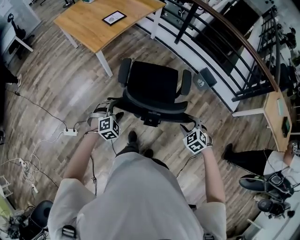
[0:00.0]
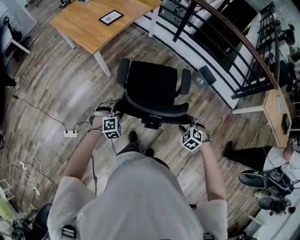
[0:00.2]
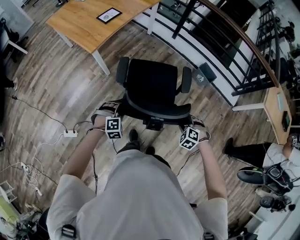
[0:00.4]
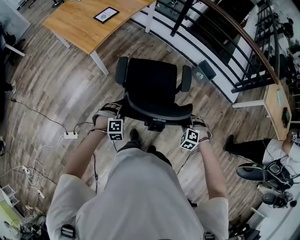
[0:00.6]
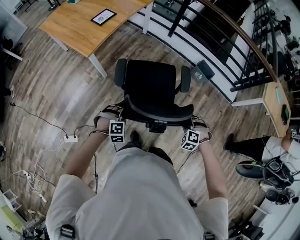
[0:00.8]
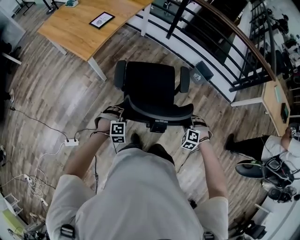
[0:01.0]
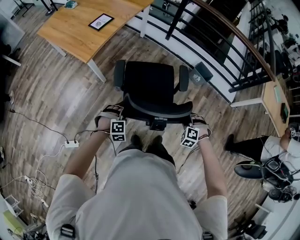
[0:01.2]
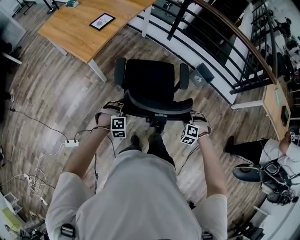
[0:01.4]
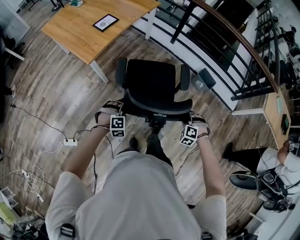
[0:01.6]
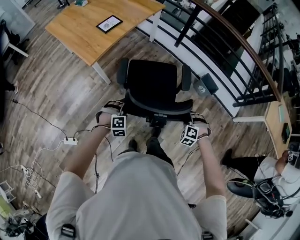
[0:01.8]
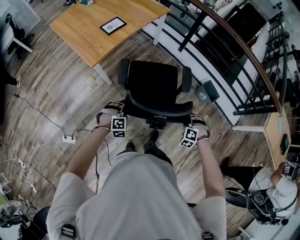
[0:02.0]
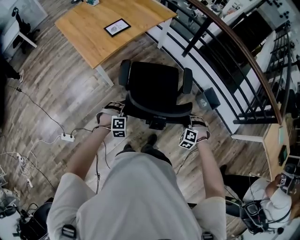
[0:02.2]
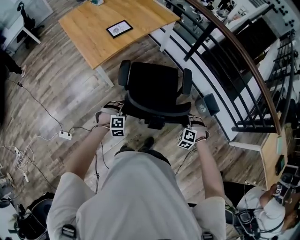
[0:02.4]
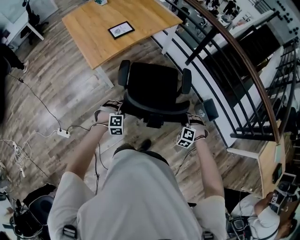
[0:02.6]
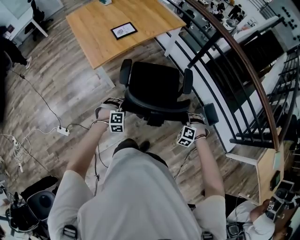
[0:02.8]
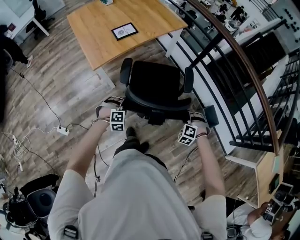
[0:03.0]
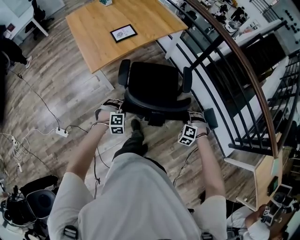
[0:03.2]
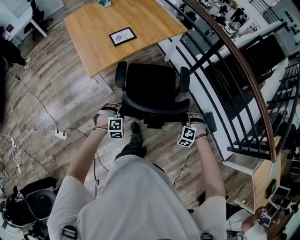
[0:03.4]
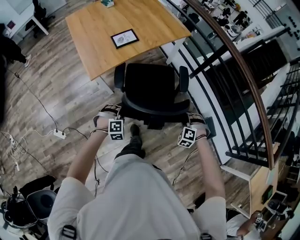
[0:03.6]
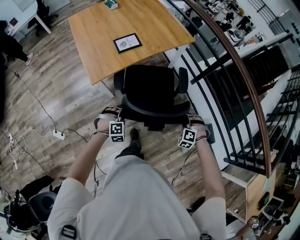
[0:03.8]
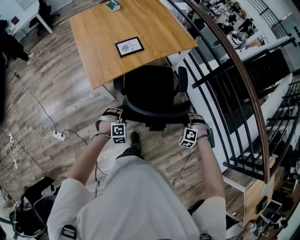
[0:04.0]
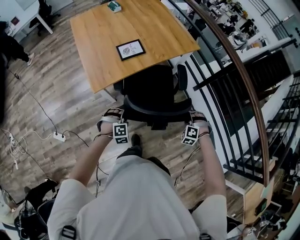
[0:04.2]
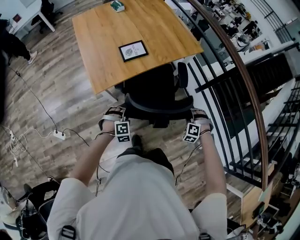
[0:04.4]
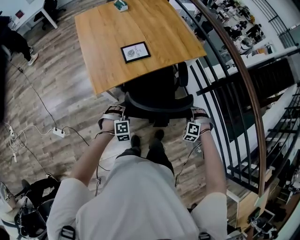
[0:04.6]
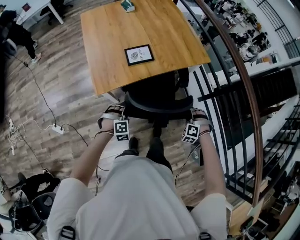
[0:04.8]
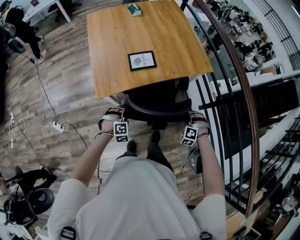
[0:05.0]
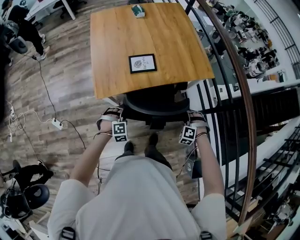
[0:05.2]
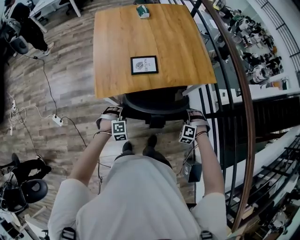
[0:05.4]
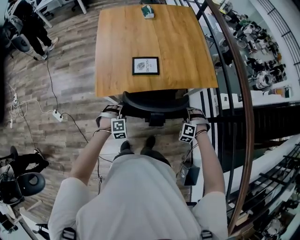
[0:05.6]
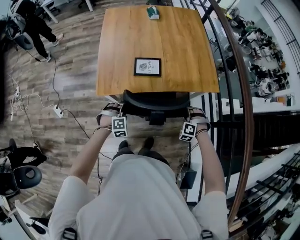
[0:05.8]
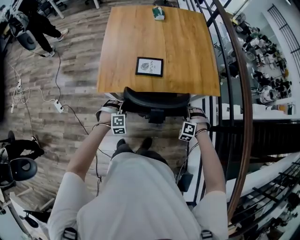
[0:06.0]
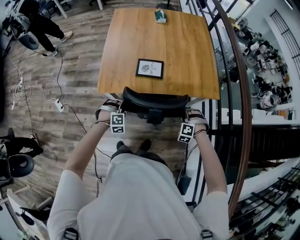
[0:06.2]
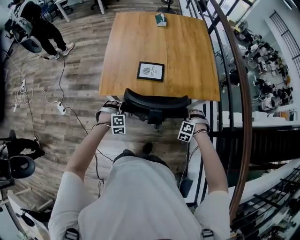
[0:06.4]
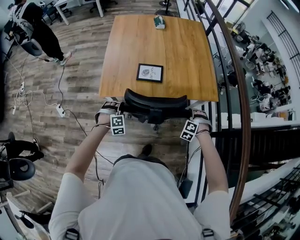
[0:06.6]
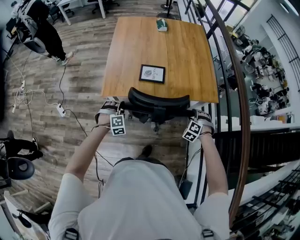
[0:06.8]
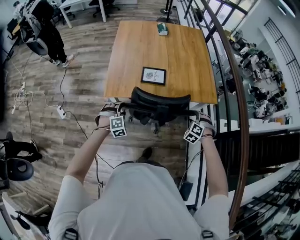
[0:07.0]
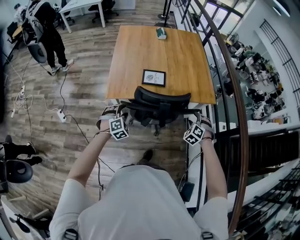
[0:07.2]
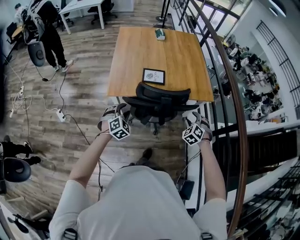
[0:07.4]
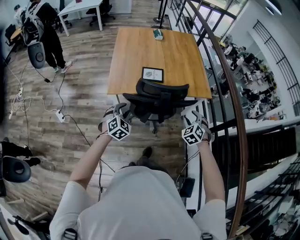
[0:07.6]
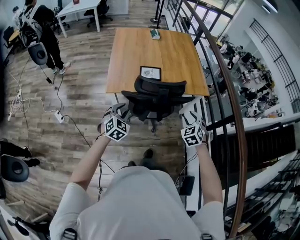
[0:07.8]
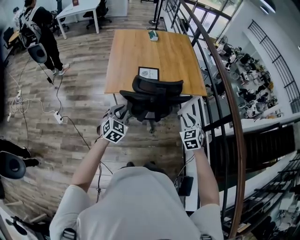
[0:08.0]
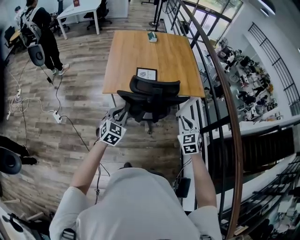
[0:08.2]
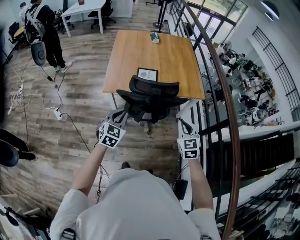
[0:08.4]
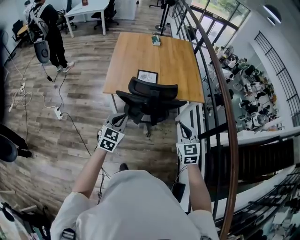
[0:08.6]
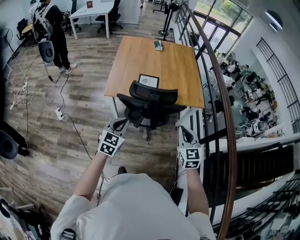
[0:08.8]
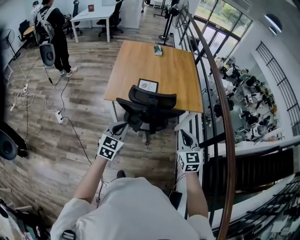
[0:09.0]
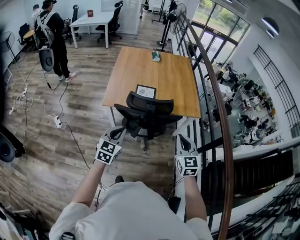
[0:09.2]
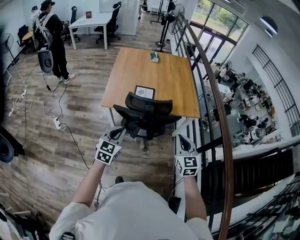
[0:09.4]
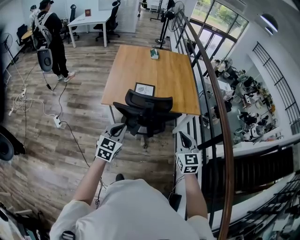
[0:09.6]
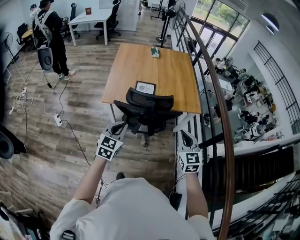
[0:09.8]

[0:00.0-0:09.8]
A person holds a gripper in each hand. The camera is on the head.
0:00.0 to 0:01.4: Both grippers move forward and downward, about 10 cm. The left gripper changes its angle by some 20 degrees, and closes up, while the right gripper changes its angle by approximately 30 degrees.
0:01.4 to 0:02.8: The grippers both shift forward by approximately 25 cm.
0:02.8 to 0:04.2: The grippers both shift forward by roughly 25 cm.
0:04.2 to 0:05.6: The left gripper moves forward, about 15 cm, and swivels roughly 20 degrees; the right gripper moves forward, roughly 25 cm, and rotates approximately 20 degrees.
0:05.6 to 0:07.0: The right gripper changes place by roughly 5 cm, and opens its fingers; the left gripper moves about 5 cm, and opens.
0:07.0 to 0:08.4: The grippers both shift backward and upward by roughly 25 cm. The left gripper twists roughly 50 degrees counterclockwise, seen from behind, and closes. Meanwhile the right gripper rotates around the line of its fingers by roughly 50 degrees, clockwise from behind, and closes.
0:08.4 to 0:09.8: The left gripper shifts by roughly 5 cm. The right gripper shifts roughly 5 cm upward.

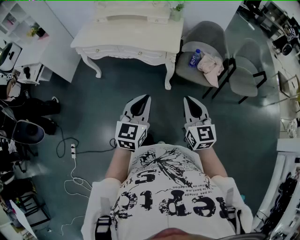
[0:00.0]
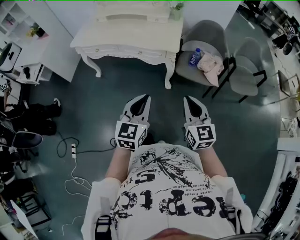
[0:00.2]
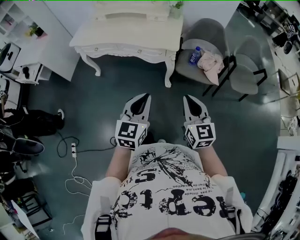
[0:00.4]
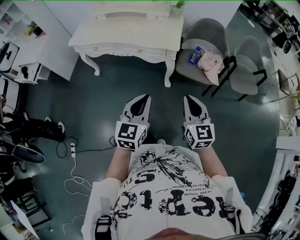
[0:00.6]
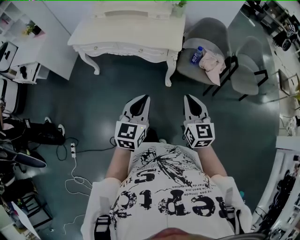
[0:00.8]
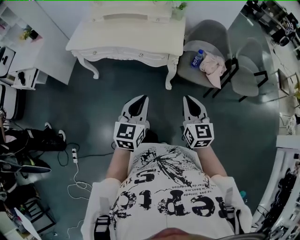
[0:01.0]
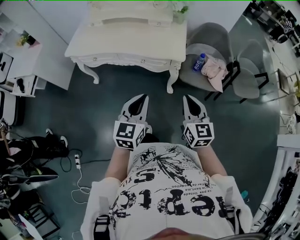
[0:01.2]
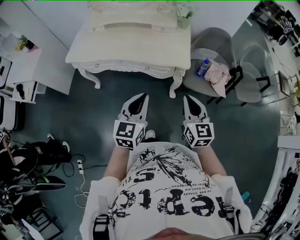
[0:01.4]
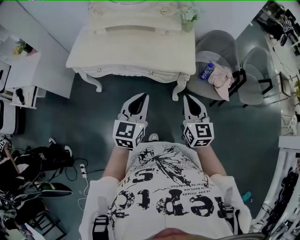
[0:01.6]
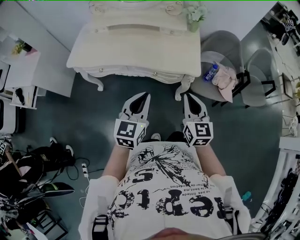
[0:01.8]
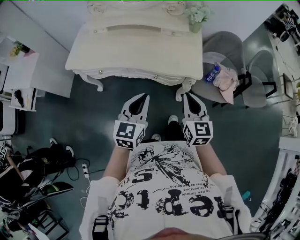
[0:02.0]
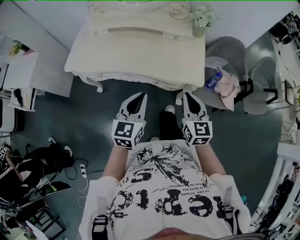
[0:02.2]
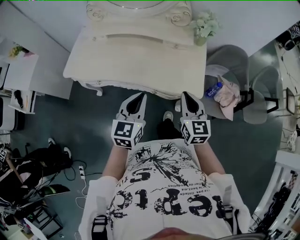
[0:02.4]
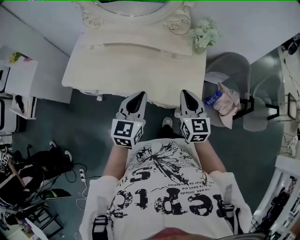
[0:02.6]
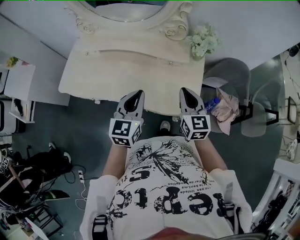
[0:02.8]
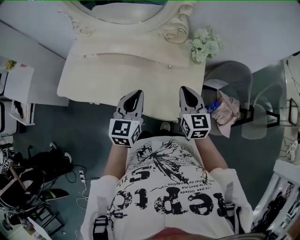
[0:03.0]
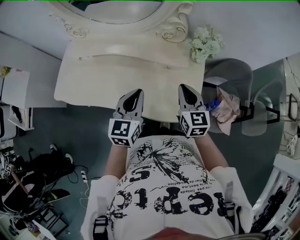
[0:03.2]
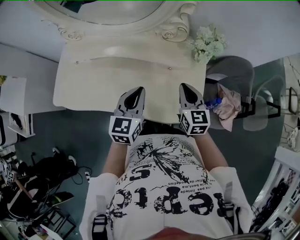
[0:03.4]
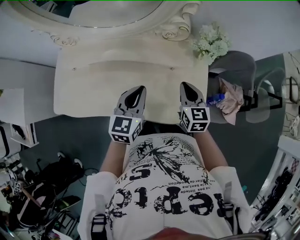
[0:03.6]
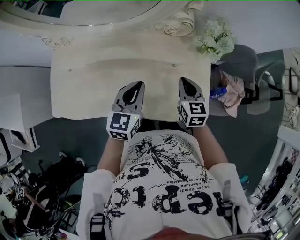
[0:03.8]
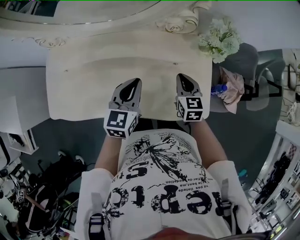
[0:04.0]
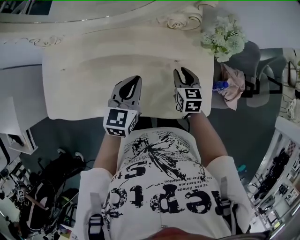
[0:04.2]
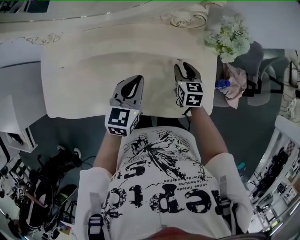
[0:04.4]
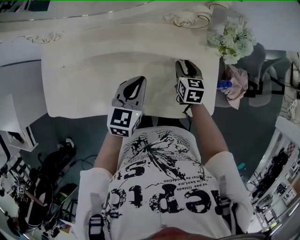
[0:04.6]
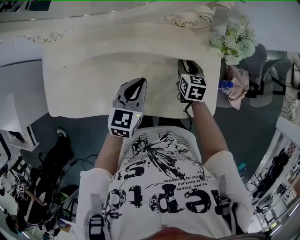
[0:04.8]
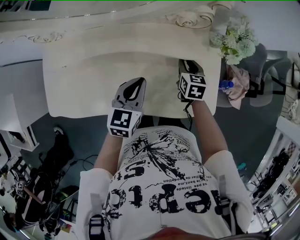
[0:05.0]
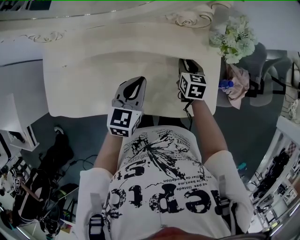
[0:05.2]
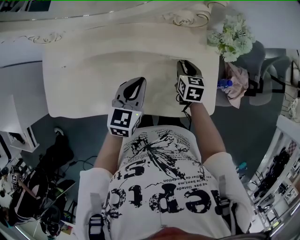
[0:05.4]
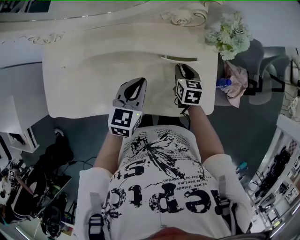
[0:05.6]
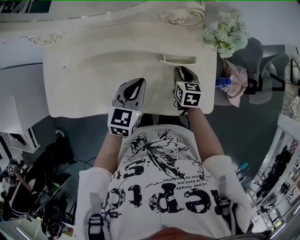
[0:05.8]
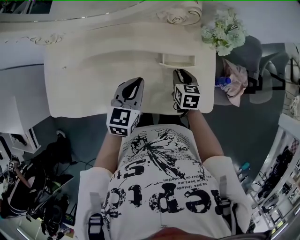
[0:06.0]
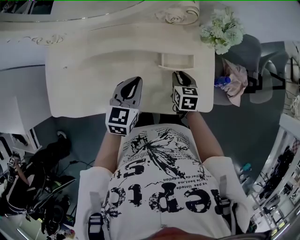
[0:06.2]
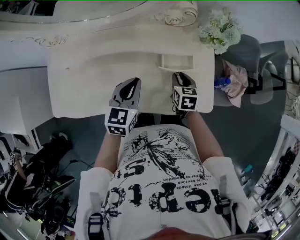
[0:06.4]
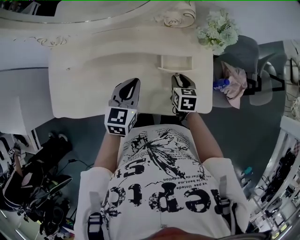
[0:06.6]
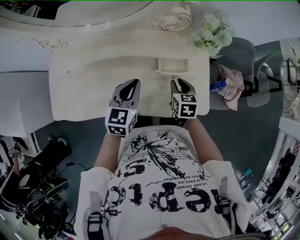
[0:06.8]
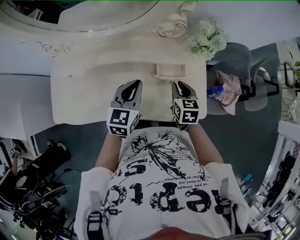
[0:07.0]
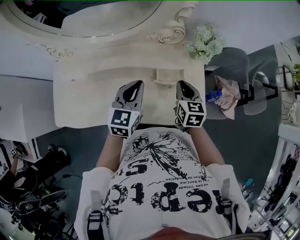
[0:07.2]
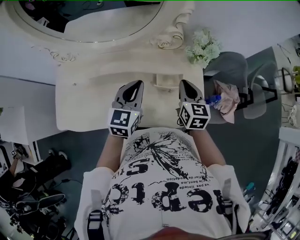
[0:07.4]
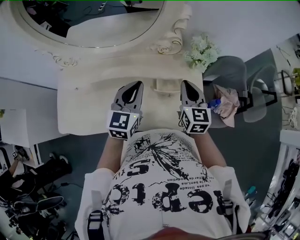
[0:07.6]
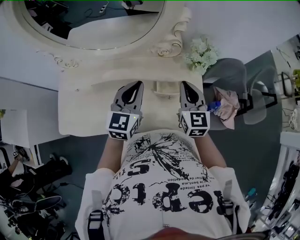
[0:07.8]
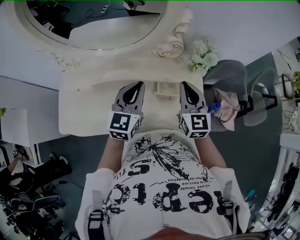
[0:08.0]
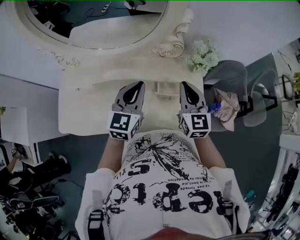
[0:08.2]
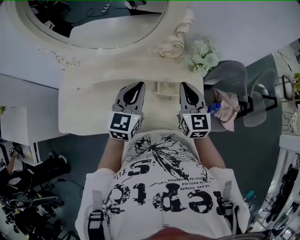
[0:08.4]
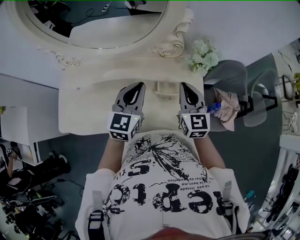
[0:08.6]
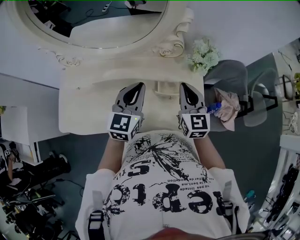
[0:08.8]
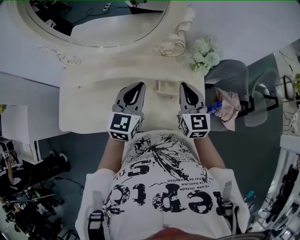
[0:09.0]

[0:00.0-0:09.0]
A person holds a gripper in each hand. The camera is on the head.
0:00.0 to 0:01.6: The two grippers go roughly 25 cm forward and to the left.
0:01.6 to 0:03.0: Both grippers travel together forward, some 35 cm.
0:03.0 to 0:04.4: The left gripper heads forward, downward and to the left, covering about 20 cm, and turns by about 20 degrees. The right gripper is displaced downward and forward by some 25 cm, swivels some 30 degrees, and opens its fingers.
0:04.4 to 0:06.0: The grippers stay close to where they were, moving slightly.
0:06.0 to 0:07.6: The left gripper goes about 10 cm upward, while the right gripper heads upward, covering some 20 cm, changes its angle by about 30 degrees, and closes.
0:07.6 to 0:09.0: The grippers move only a little.

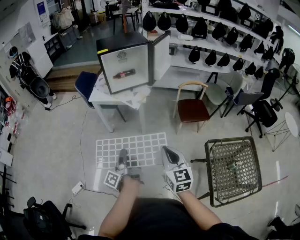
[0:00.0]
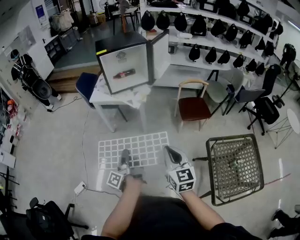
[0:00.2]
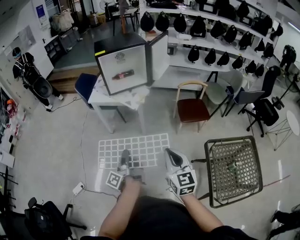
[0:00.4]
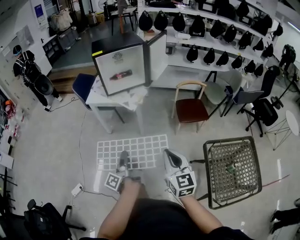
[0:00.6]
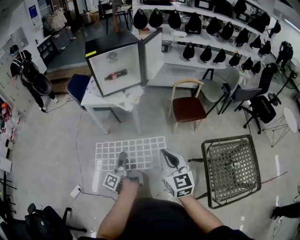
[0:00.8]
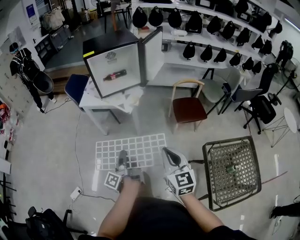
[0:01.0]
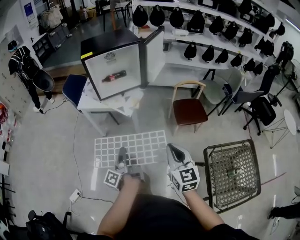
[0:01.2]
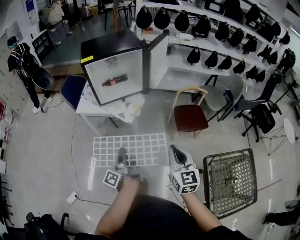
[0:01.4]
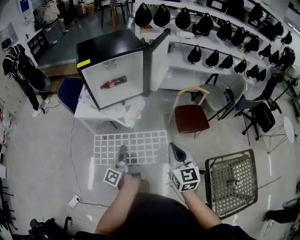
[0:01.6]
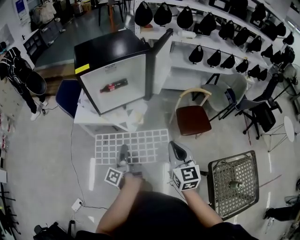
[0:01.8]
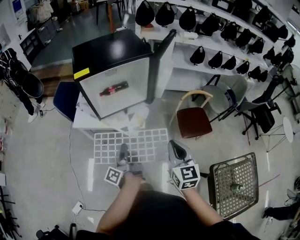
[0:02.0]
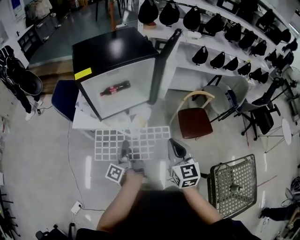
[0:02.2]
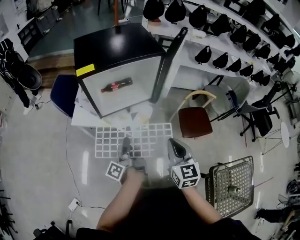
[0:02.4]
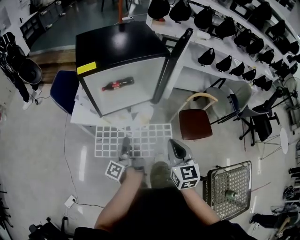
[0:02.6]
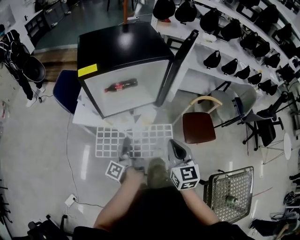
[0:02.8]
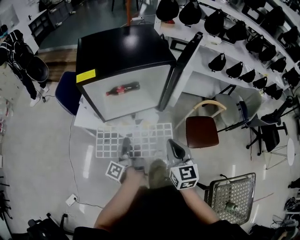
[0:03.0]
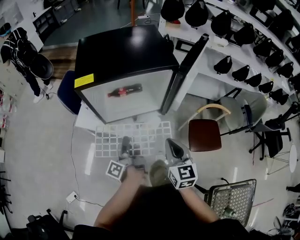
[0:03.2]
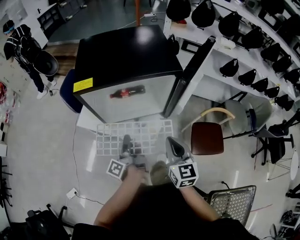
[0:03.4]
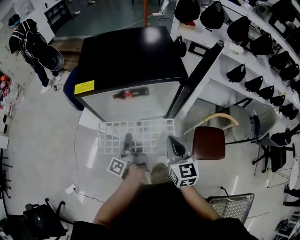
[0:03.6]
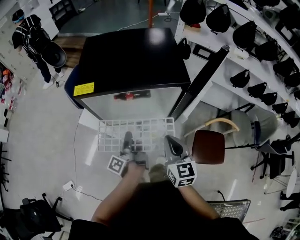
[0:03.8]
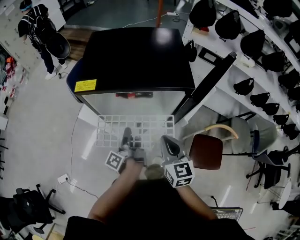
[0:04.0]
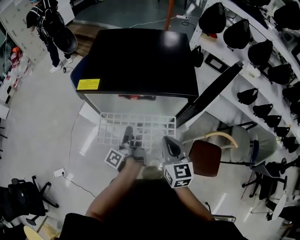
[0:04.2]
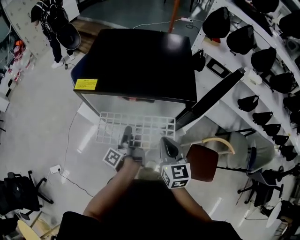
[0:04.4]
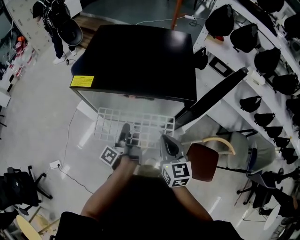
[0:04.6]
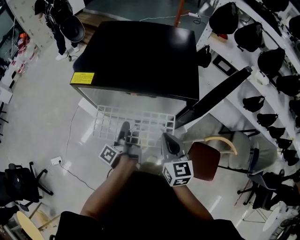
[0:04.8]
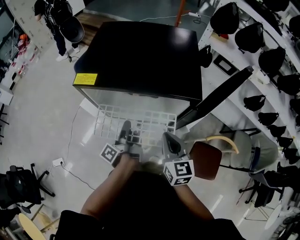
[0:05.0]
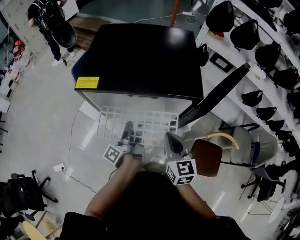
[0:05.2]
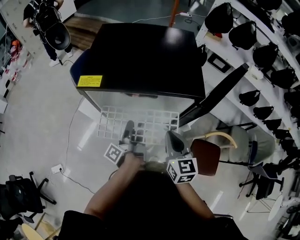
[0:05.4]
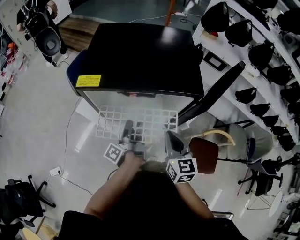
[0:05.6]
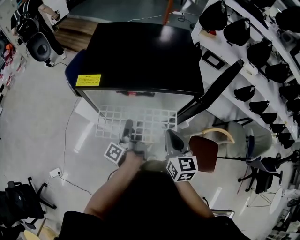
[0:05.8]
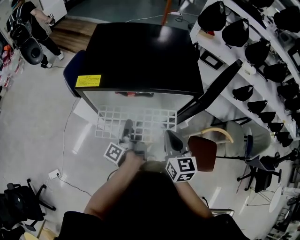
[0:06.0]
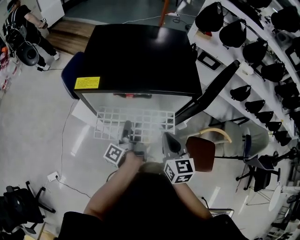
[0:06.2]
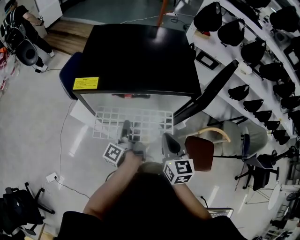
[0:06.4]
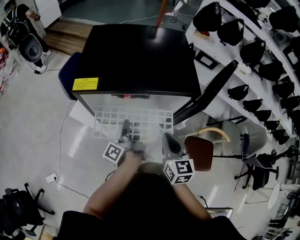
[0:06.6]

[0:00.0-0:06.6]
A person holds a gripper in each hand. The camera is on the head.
0:00.0 to 0:01.6: The right gripper changes place by approximately 30 cm.
0:01.6 to 0:03.2: The right gripper changes place by about 35 cm.
0:03.2 to 0:05.0: The right gripper ends up roughly 20 cm from where it was, and swivels approximately 20 degrees.
